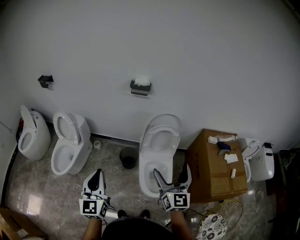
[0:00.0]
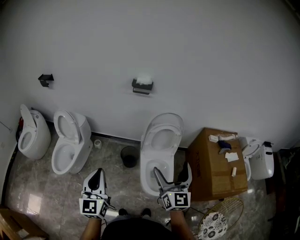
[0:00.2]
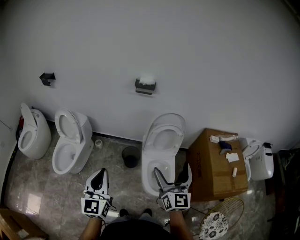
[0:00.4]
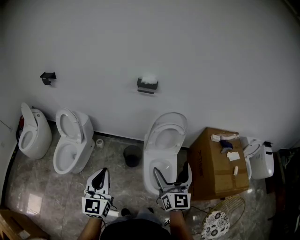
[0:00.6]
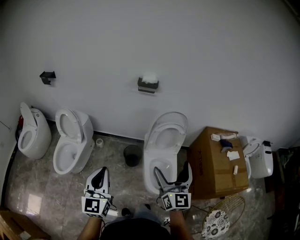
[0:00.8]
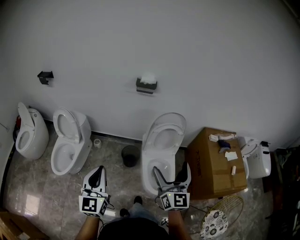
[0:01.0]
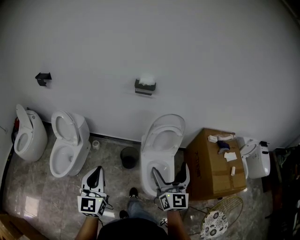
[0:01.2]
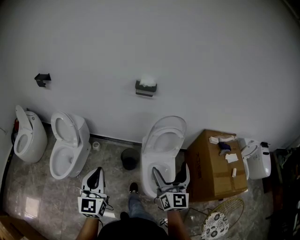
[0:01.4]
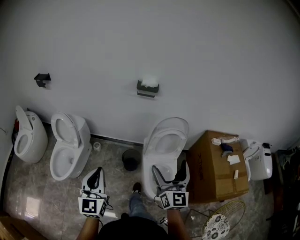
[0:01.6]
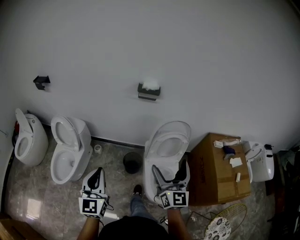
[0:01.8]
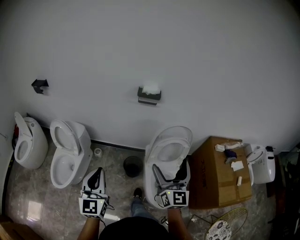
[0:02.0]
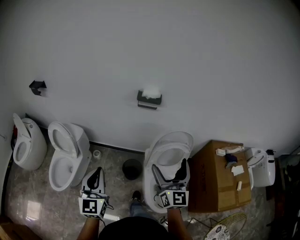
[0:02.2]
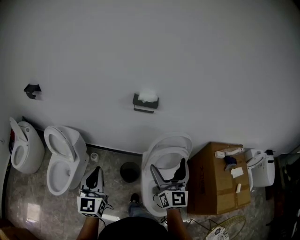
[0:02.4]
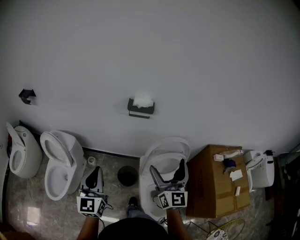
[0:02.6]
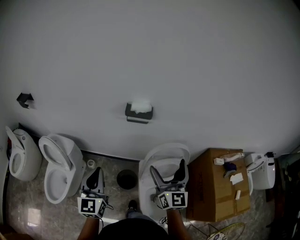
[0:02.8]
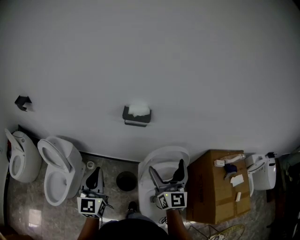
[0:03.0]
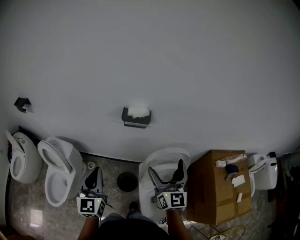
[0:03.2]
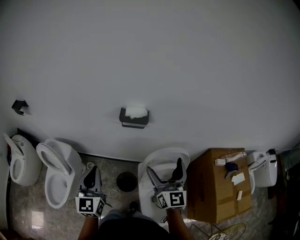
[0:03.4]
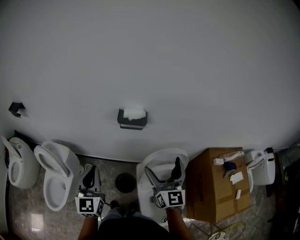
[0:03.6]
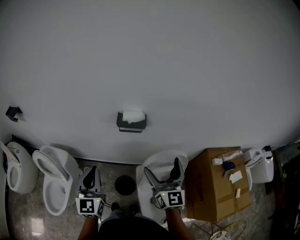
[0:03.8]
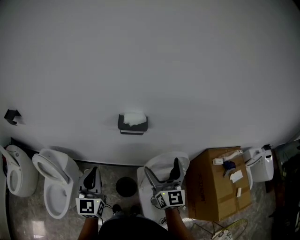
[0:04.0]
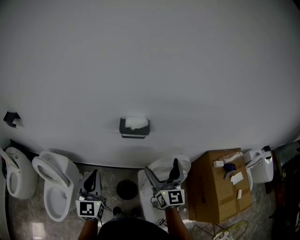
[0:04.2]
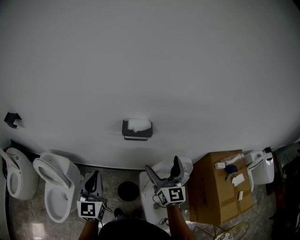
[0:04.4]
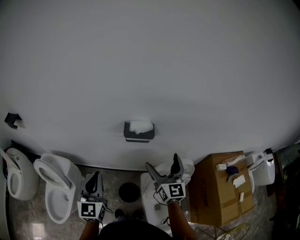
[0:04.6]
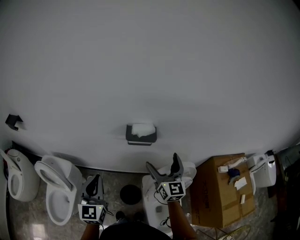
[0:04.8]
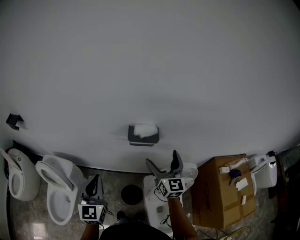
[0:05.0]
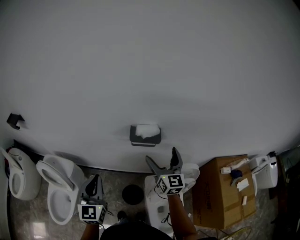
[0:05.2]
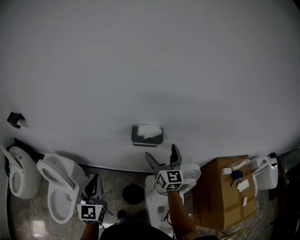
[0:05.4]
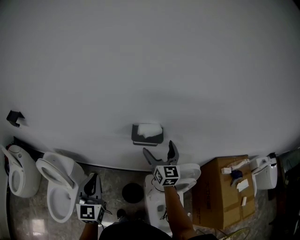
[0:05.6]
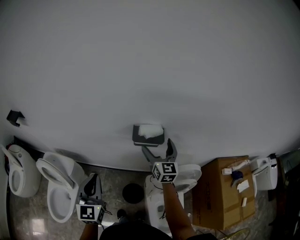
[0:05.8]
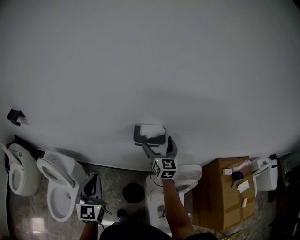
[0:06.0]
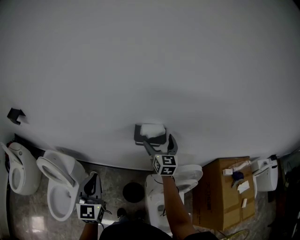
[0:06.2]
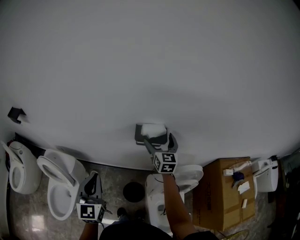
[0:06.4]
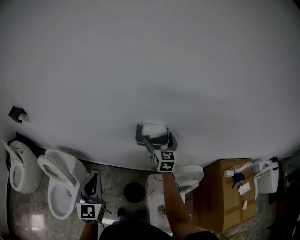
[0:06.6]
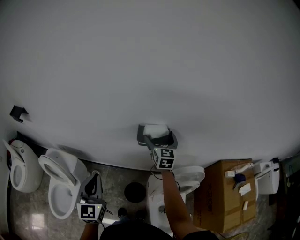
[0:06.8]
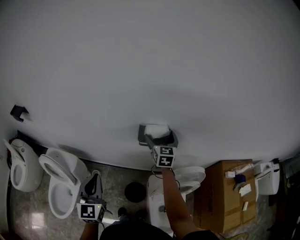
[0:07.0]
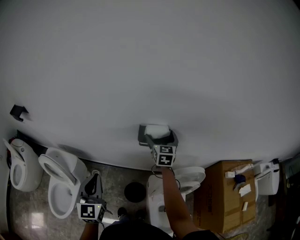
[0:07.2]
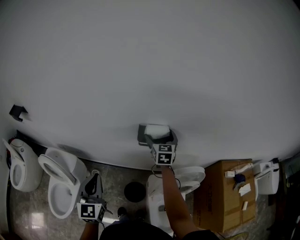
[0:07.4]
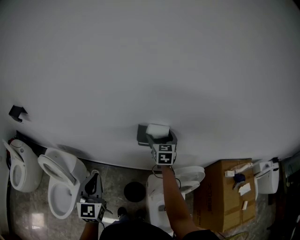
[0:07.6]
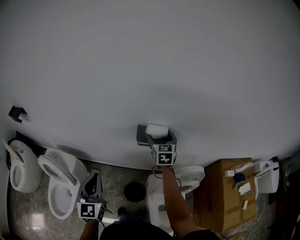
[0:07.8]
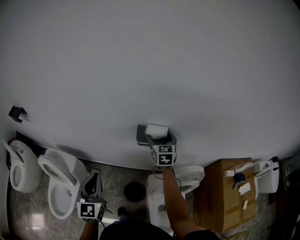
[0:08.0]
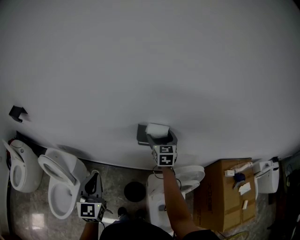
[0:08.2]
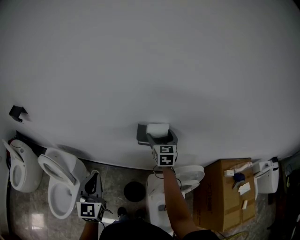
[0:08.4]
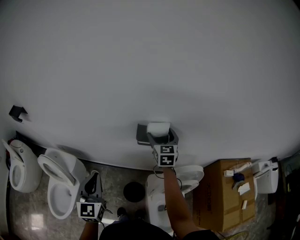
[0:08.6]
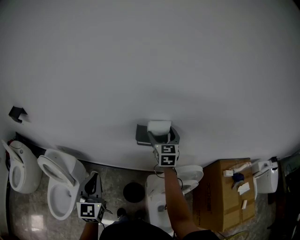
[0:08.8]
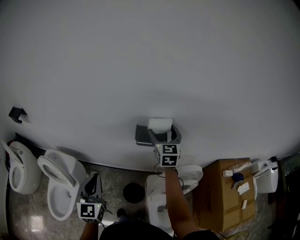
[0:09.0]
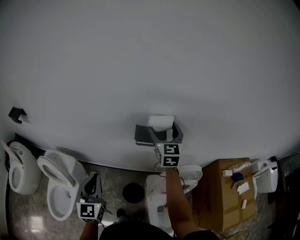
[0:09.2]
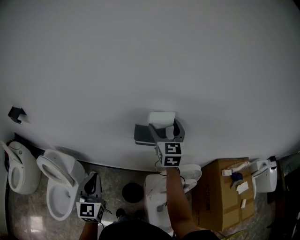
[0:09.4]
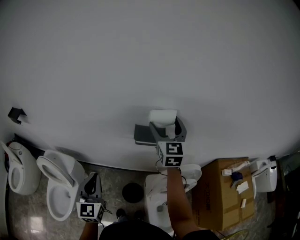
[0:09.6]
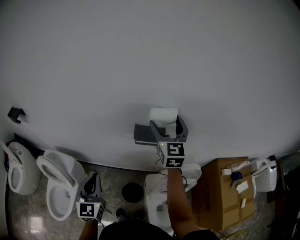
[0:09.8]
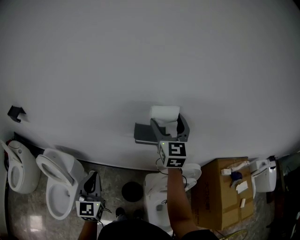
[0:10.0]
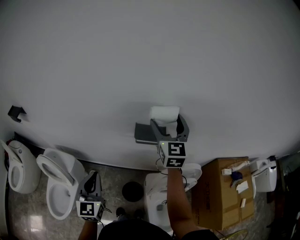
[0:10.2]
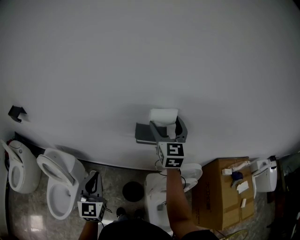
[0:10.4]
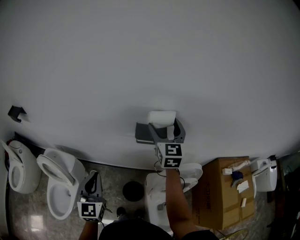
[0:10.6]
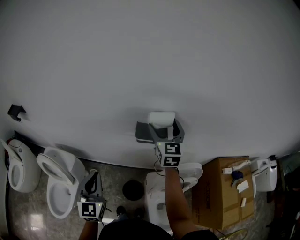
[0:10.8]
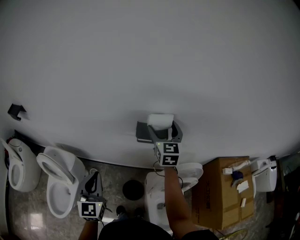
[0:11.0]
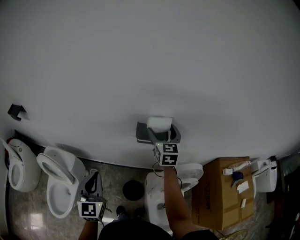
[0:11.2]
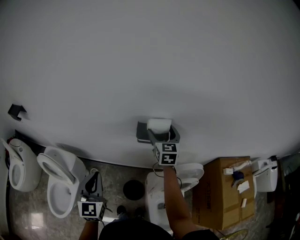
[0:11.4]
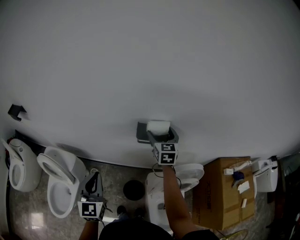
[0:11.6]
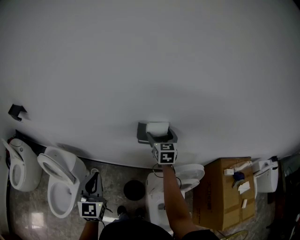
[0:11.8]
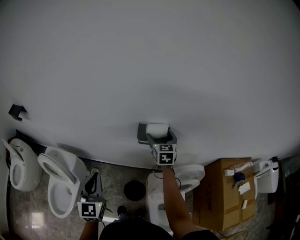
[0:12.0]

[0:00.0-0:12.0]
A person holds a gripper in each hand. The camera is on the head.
0:00.0 to 0:01.6: The two grippers go about 10 cm to the left and forward.
0:01.6 to 0:03.0: The grippers both shift forward by approximately 30 cm.
0:03.0 to 0:04.4: The grippers both shift forward by approximately 10 cm.
0:04.4 to 0:06.0: The left gripper shifts roughly 5 cm to the left, while the right gripper is displaced forward by roughly 20 cm.
0:06.0 to 0:07.6: The right gripper goes approximately 5 cm forward, and swivels approximately 20 degrees.
0:07.6 to 0:09.0: The right gripper moves upward, roughly 10 cm.
0:09.0 to 0:10.4: The right gripper goes about 10 cm upward.
0:10.4 to 0:12.0: The right gripper heads downward, covering approximately 15 cm, and swivels roughly 20 degrees.

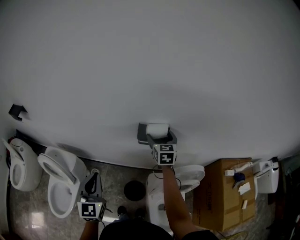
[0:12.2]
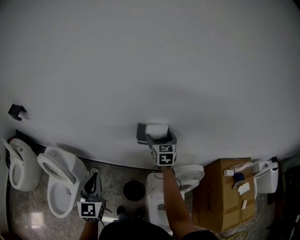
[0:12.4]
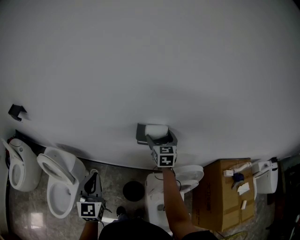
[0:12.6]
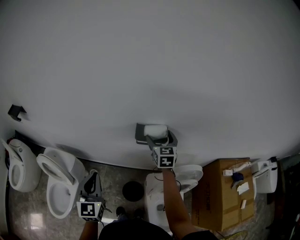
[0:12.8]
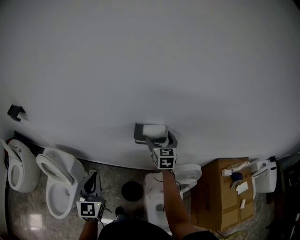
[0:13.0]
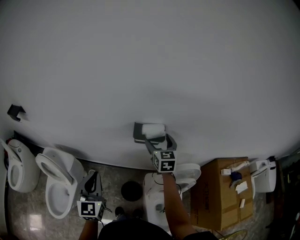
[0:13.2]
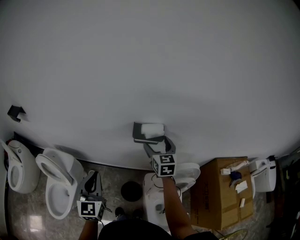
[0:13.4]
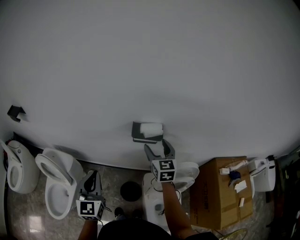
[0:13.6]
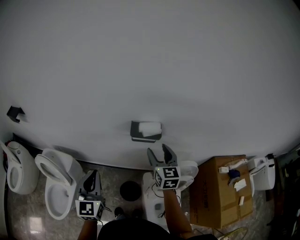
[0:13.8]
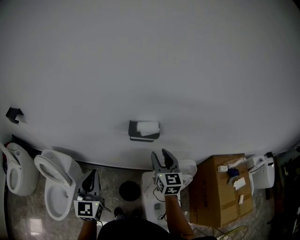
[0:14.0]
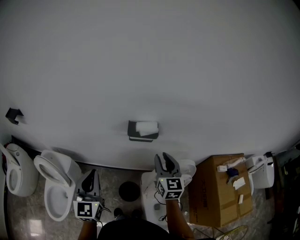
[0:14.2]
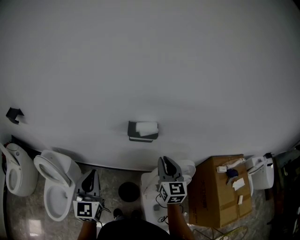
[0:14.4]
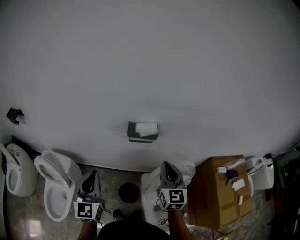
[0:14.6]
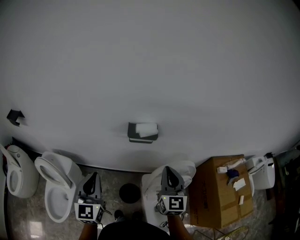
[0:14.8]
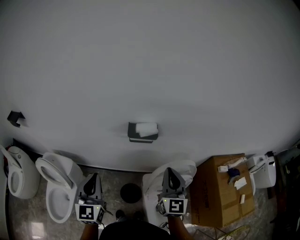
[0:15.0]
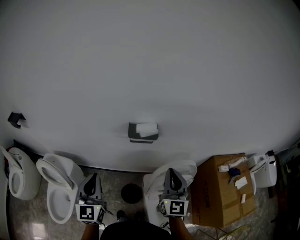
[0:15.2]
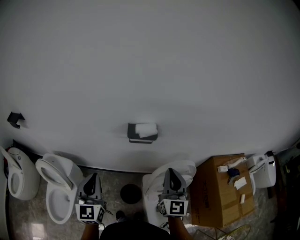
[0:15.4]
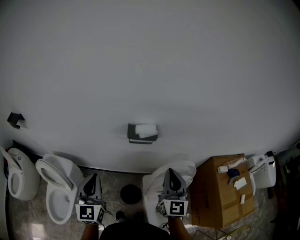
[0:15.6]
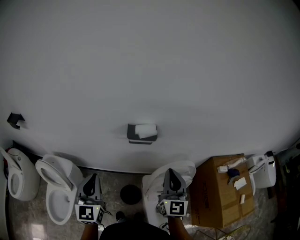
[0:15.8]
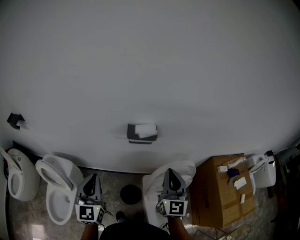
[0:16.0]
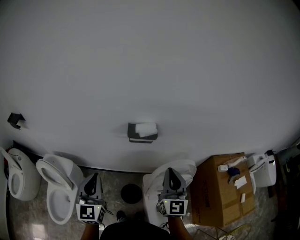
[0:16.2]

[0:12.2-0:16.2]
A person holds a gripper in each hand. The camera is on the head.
0:12.2 to 0:13.6: The right gripper travels backward by about 10 cm.
0:13.6 to 0:14.8: The right gripper moves backward, about 15 cm, and closes.
0:14.8 to 0:16.2: The grippers make only small movements.

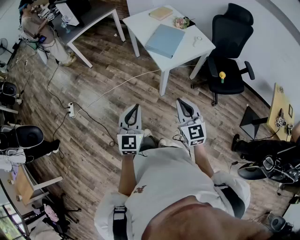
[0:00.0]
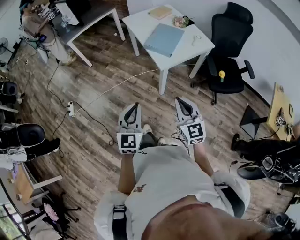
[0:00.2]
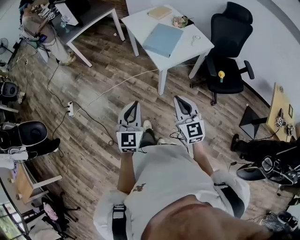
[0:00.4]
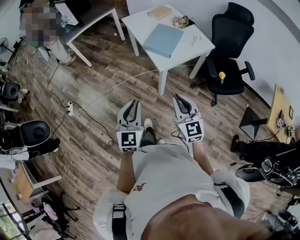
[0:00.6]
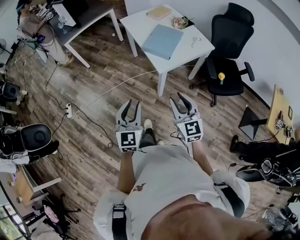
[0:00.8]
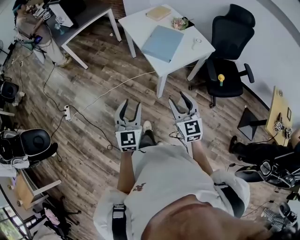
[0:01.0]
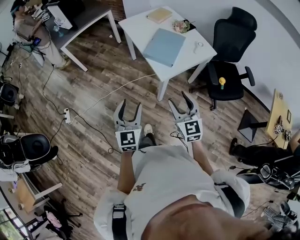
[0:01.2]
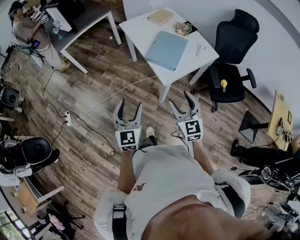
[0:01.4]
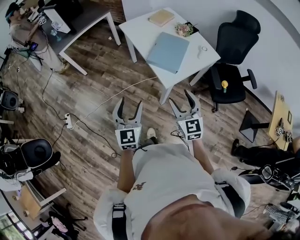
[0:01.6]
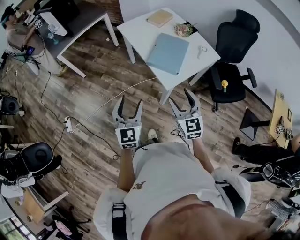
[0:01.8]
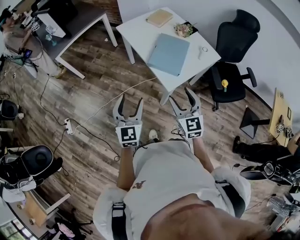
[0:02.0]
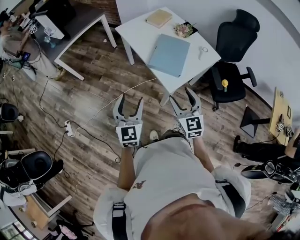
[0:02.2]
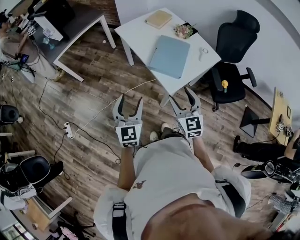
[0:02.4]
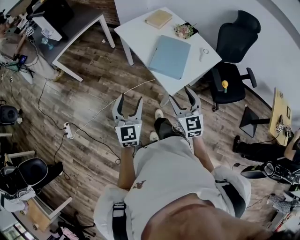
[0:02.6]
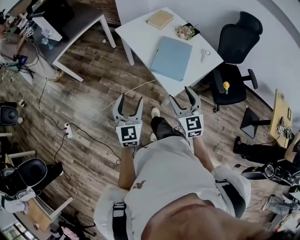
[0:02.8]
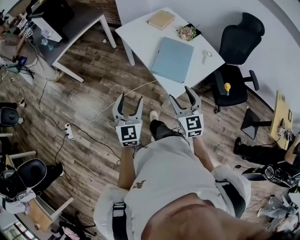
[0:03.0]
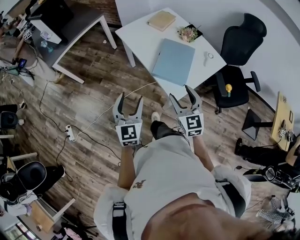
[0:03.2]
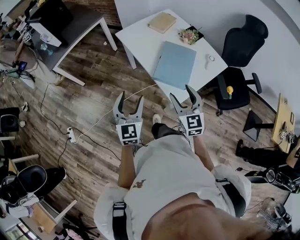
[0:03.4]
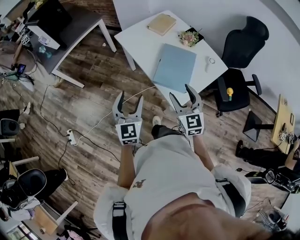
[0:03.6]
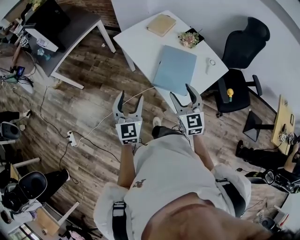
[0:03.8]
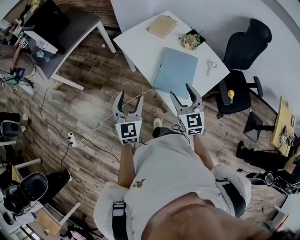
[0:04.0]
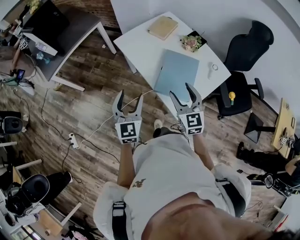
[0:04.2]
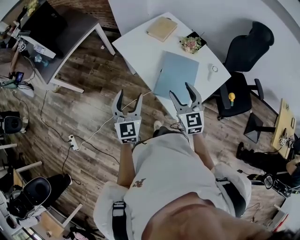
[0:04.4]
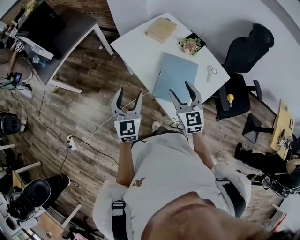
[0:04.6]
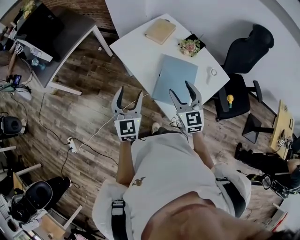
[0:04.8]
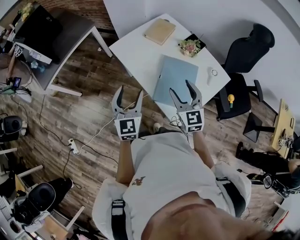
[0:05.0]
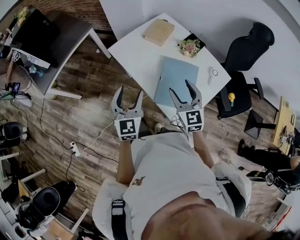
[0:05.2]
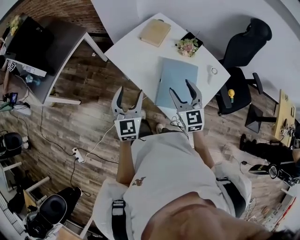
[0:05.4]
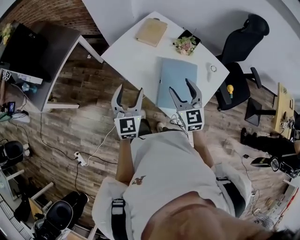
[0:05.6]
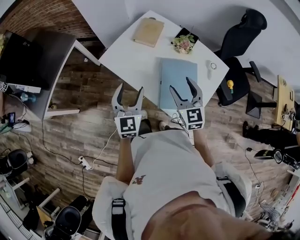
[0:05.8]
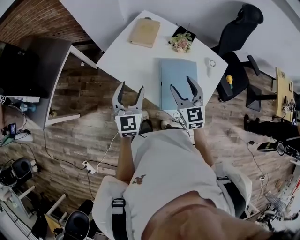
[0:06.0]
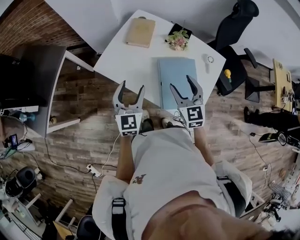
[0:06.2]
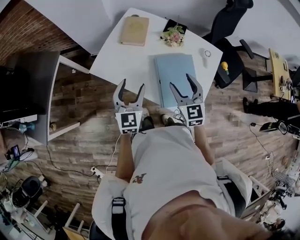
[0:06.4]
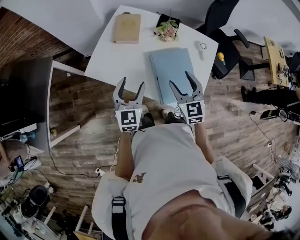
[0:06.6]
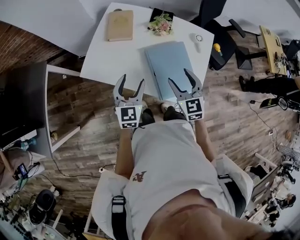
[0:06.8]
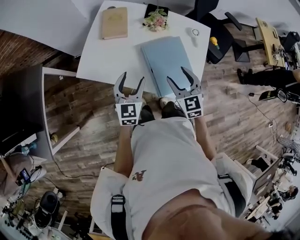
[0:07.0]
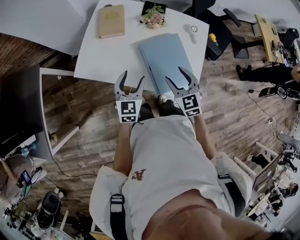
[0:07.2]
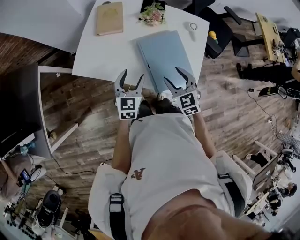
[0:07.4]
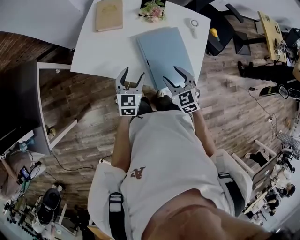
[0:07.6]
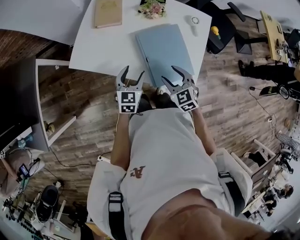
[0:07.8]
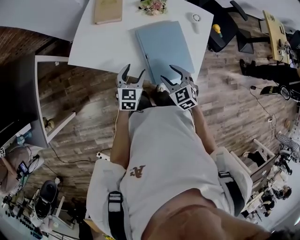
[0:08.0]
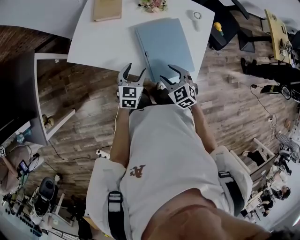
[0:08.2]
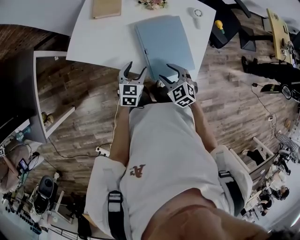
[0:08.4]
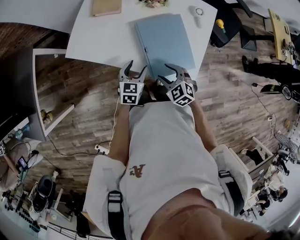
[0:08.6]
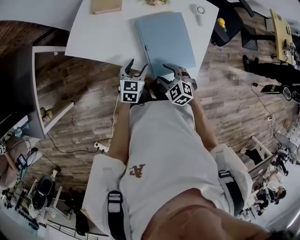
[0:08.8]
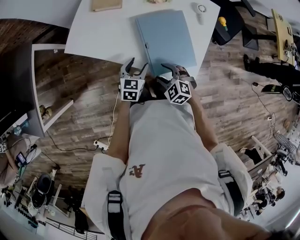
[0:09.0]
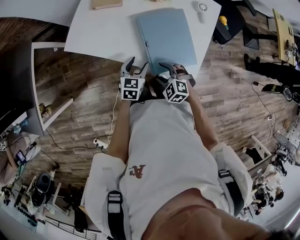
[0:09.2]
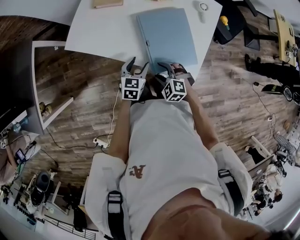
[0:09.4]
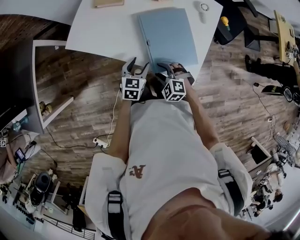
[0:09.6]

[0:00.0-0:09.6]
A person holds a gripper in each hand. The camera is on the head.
0:00.0 to 0:01.6: Both grippers travel together forward, approximately 20 cm. The right gripper opens. The left gripper opens its fingers.
0:01.6 to 0:03.2: The two grippers go roughly 15 cm forward.
0:03.2 to 0:04.8: The grippers both shift forward by roughly 20 cm.
0:04.8 to 0:06.4: The left gripper shifts by about 20 cm, and swivels roughly 30 degrees; the right gripper ends up roughly 10 cm from where it was, and changes its angle by approximately 30 degrees.
0:06.4 to 0:08.0: The right gripper is displaced downward and backward by roughly 15 cm, and rotates approximately 20 degrees. The left gripper is displaced downward and to the right by roughly 20 cm, and turns by roughly 30 degrees.
0:08.0 to 0:09.6: The left gripper moves downward, some 5 cm. The right gripper shifts approximately 10 cm downward and backward, and swivels about 30 degrees.
